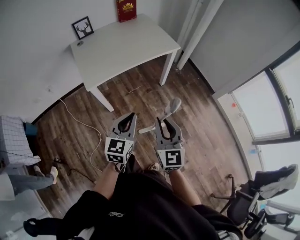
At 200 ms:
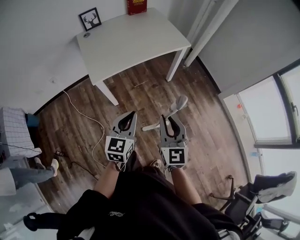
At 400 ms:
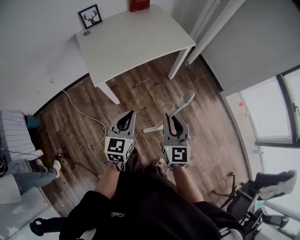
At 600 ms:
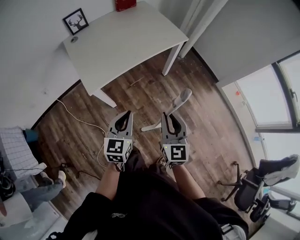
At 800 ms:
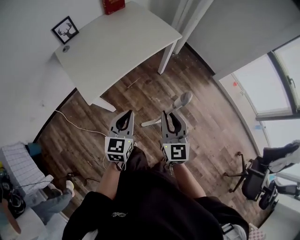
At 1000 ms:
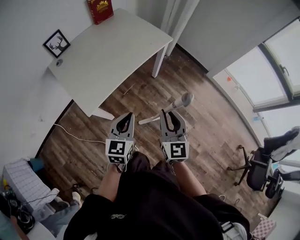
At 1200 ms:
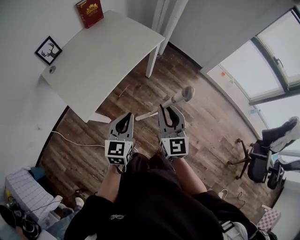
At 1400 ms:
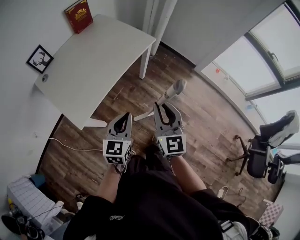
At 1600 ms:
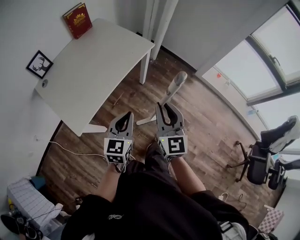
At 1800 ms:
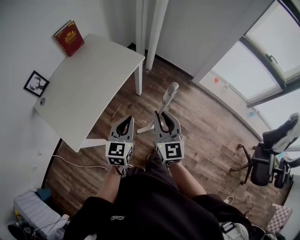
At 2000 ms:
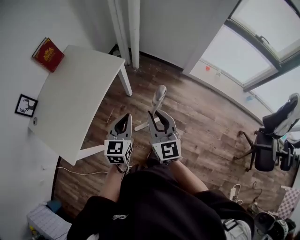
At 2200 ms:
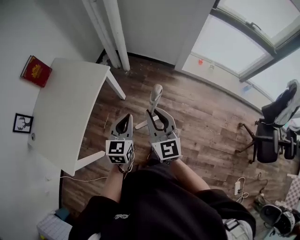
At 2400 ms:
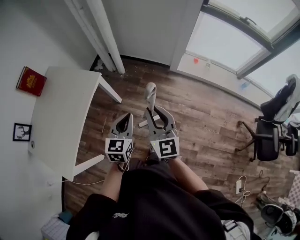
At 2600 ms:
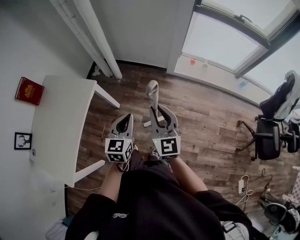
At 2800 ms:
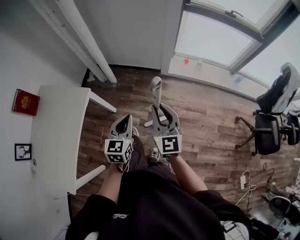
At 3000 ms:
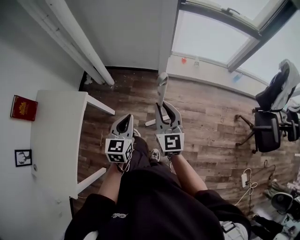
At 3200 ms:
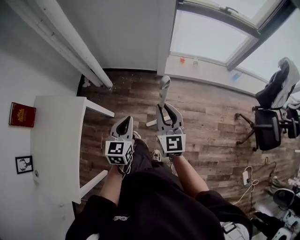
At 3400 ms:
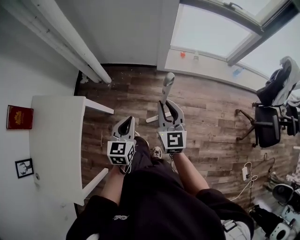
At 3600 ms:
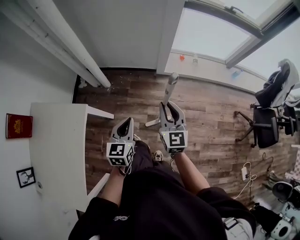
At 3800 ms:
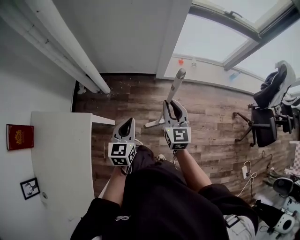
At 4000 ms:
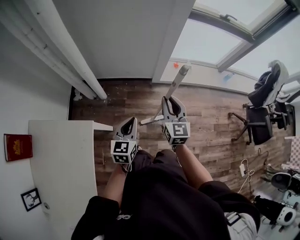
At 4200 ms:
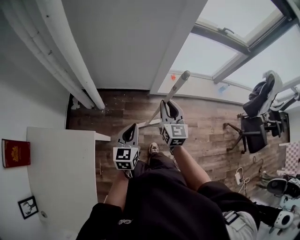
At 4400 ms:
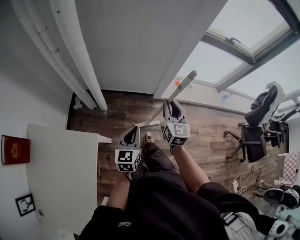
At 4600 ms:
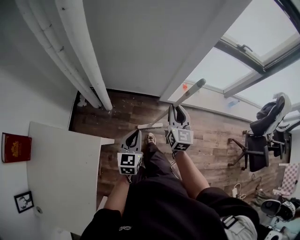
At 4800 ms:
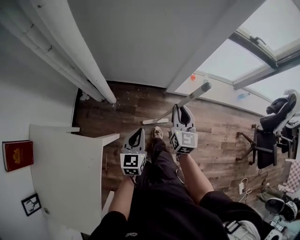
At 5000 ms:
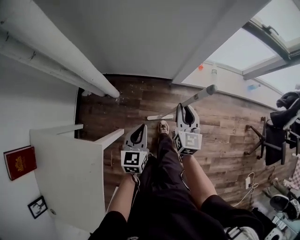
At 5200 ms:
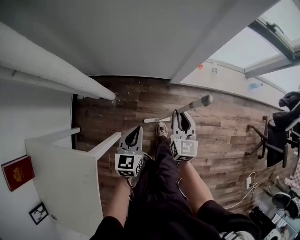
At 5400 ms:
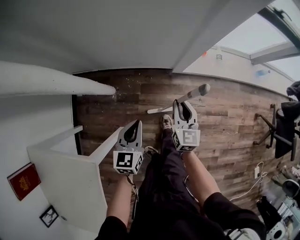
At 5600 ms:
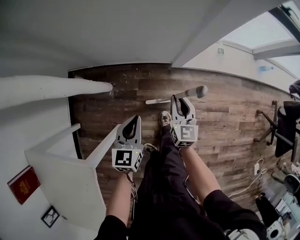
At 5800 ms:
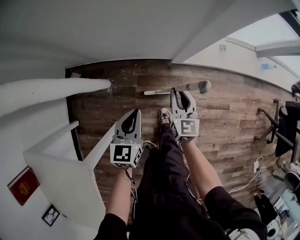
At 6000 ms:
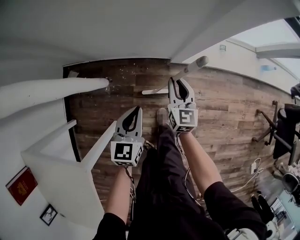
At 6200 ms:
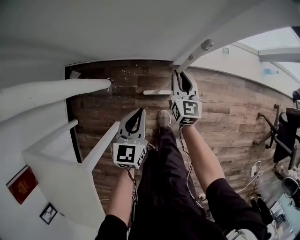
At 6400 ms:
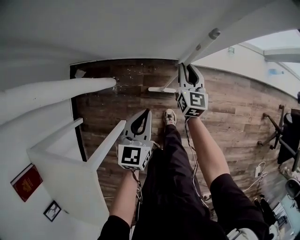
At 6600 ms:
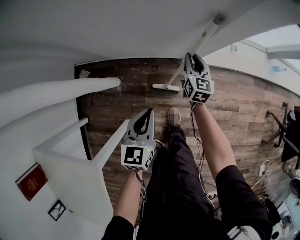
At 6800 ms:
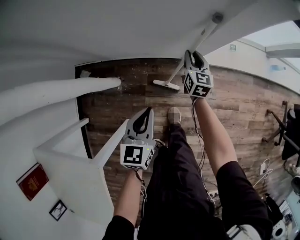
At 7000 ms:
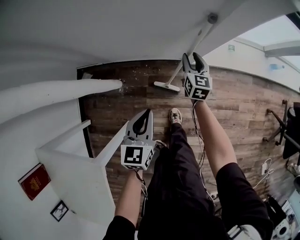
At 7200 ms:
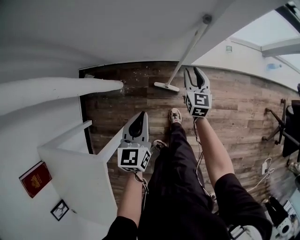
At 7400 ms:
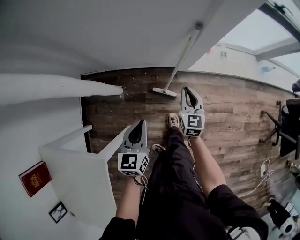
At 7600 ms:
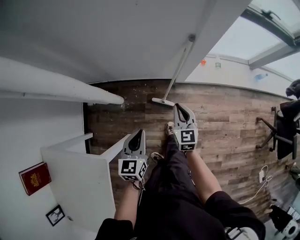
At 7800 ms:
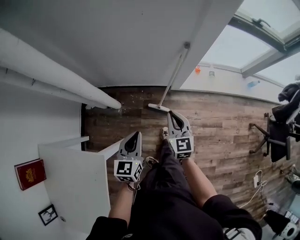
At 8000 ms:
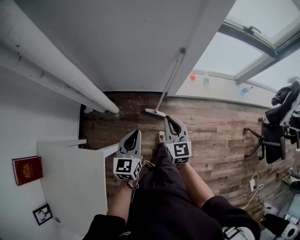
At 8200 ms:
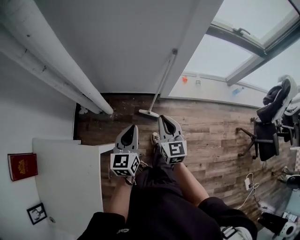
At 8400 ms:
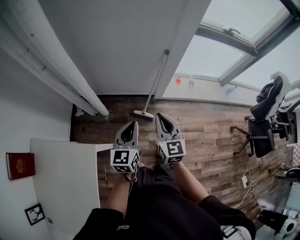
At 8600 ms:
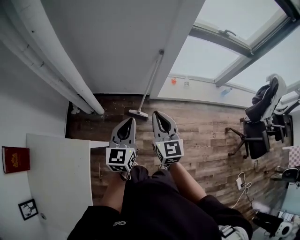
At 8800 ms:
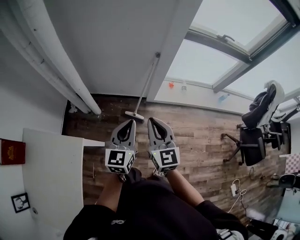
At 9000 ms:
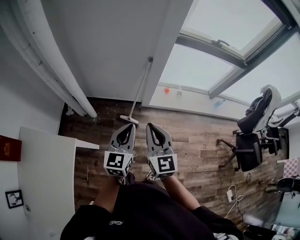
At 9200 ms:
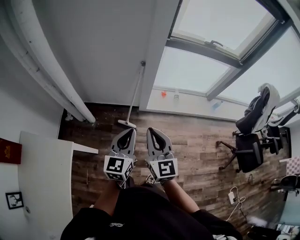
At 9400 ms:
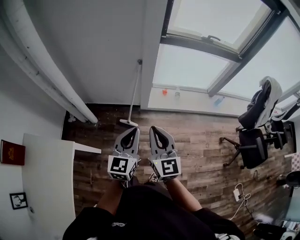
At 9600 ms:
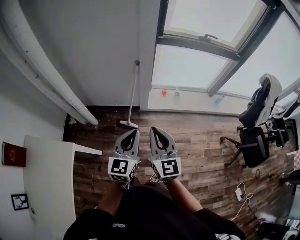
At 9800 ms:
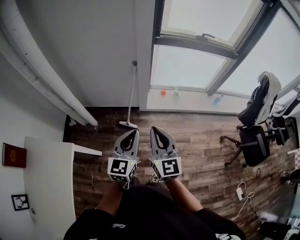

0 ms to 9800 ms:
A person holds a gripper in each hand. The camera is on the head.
0 ms to 1400 ms: The two grippers go some 15 cm forward and to the left. The right gripper swivels approximately 20 degrees.
1400 ms to 2800 ms: The two grippers travel together, to the right and forward, roughly 40 cm. The right gripper turns by roughly 20 degrees; the left gripper rotates approximately 20 degrees.
2800 ms to 4200 ms: The right gripper moves forward, some 25 cm, while the left gripper moves forward and to the left, roughly 20 cm.
4200 ms to 5600 ms: The left gripper is displaced forward and downward by roughly 30 cm. The right gripper moves downward and forward, about 35 cm.
5600 ms to 7000 ms: The right gripper goes roughly 20 cm forward.
7000 ms to 8400 ms: The right gripper shifts approximately 50 cm backward and upward, and closes its fingers. The left gripper moves upward and backward, about 30 cm.
8400 ms to 9800 ms: The right gripper goes roughly 25 cm to the right, backward and upward. The left gripper moves to the right, some 25 cm.

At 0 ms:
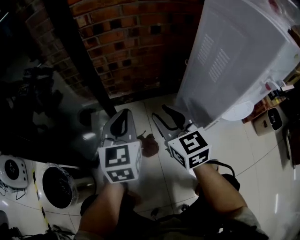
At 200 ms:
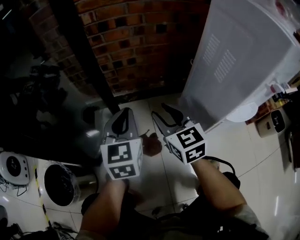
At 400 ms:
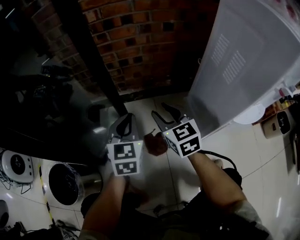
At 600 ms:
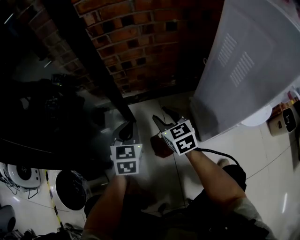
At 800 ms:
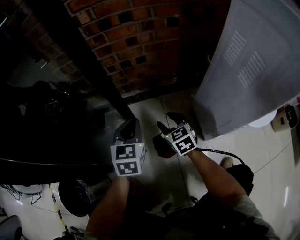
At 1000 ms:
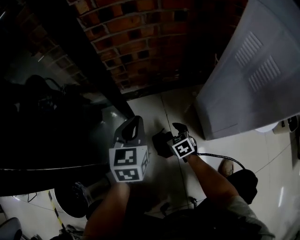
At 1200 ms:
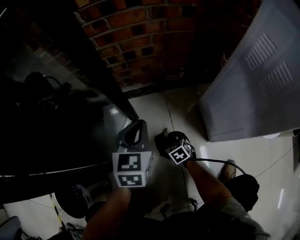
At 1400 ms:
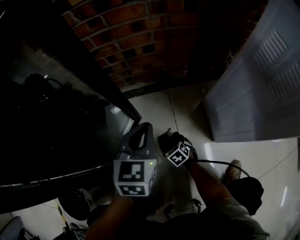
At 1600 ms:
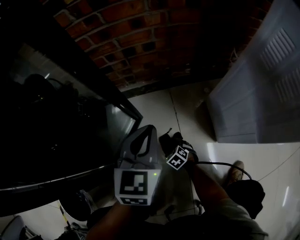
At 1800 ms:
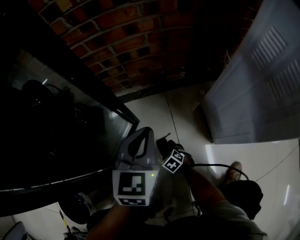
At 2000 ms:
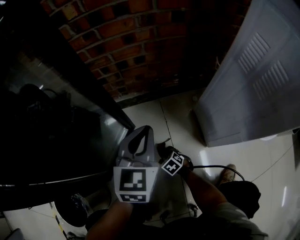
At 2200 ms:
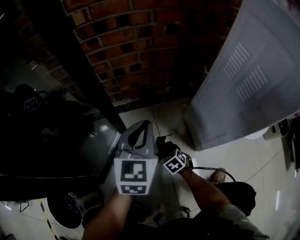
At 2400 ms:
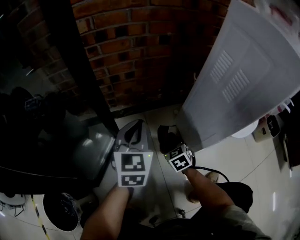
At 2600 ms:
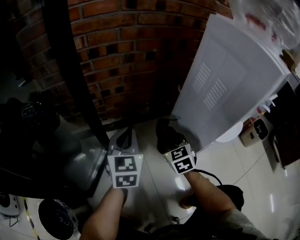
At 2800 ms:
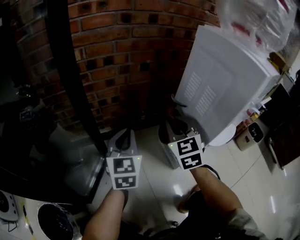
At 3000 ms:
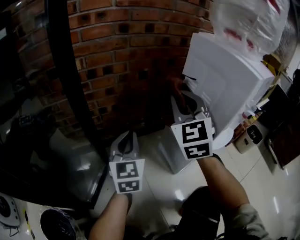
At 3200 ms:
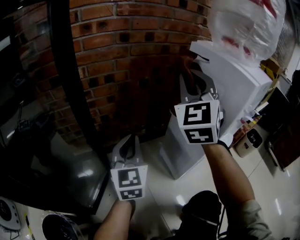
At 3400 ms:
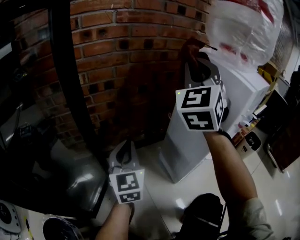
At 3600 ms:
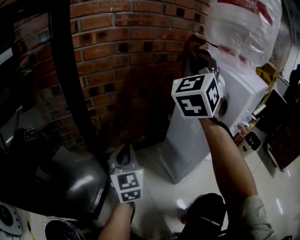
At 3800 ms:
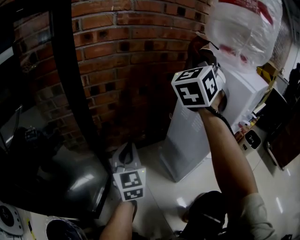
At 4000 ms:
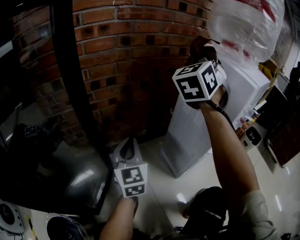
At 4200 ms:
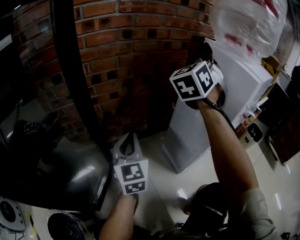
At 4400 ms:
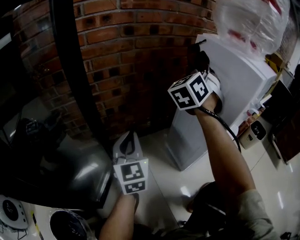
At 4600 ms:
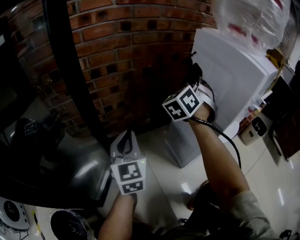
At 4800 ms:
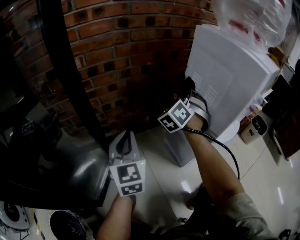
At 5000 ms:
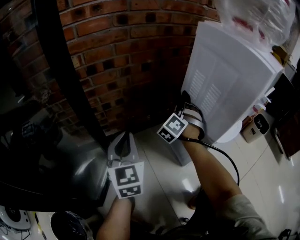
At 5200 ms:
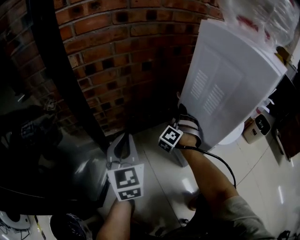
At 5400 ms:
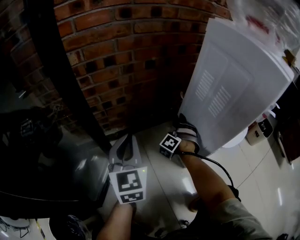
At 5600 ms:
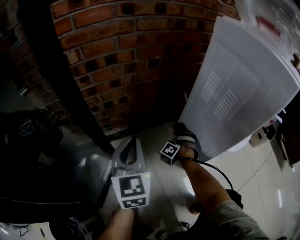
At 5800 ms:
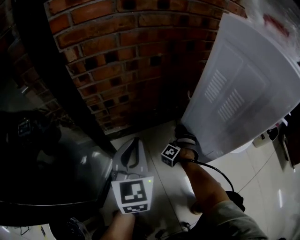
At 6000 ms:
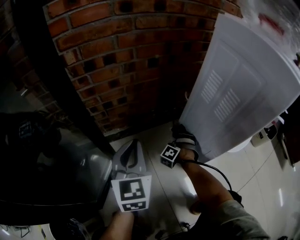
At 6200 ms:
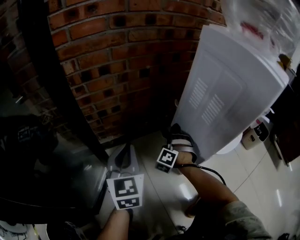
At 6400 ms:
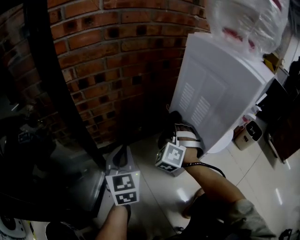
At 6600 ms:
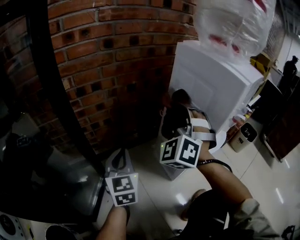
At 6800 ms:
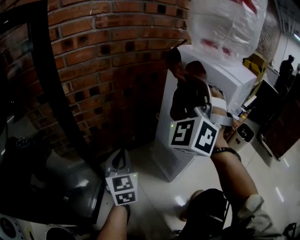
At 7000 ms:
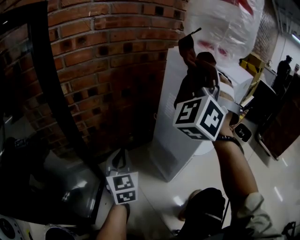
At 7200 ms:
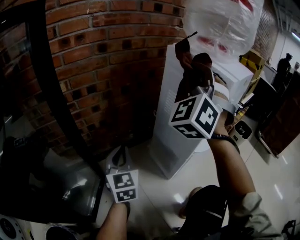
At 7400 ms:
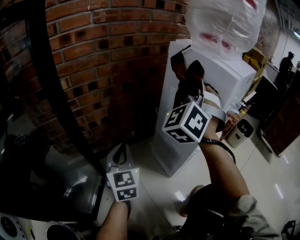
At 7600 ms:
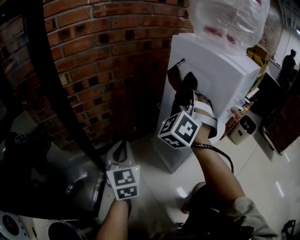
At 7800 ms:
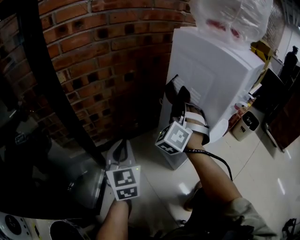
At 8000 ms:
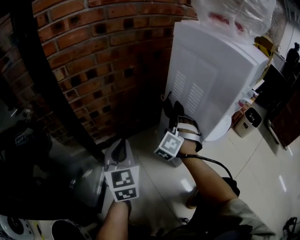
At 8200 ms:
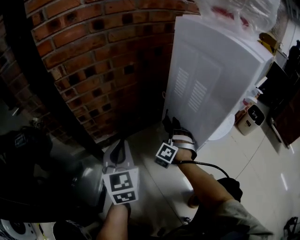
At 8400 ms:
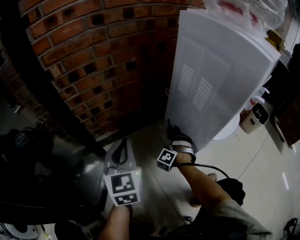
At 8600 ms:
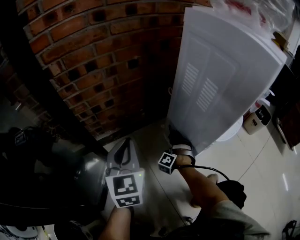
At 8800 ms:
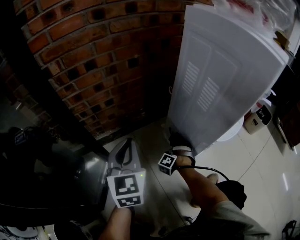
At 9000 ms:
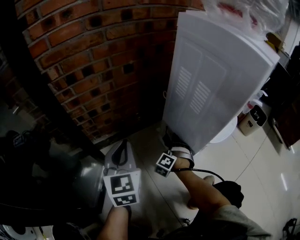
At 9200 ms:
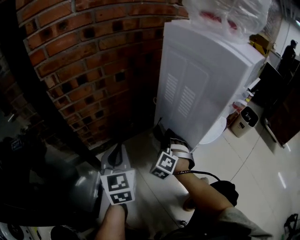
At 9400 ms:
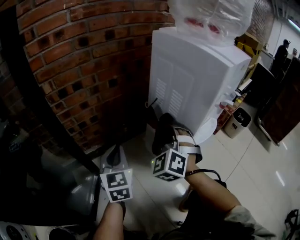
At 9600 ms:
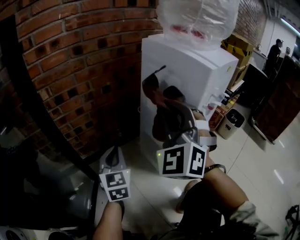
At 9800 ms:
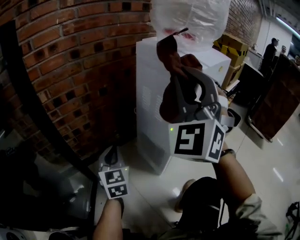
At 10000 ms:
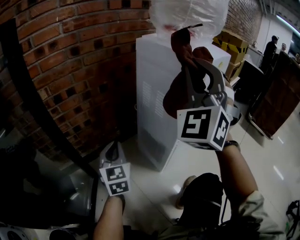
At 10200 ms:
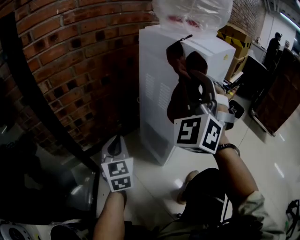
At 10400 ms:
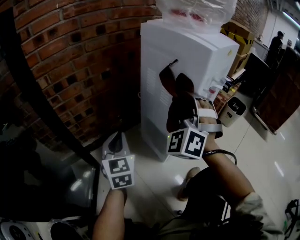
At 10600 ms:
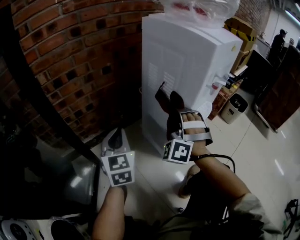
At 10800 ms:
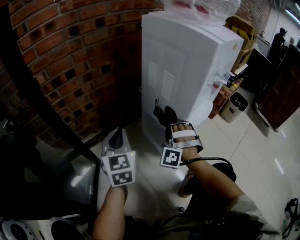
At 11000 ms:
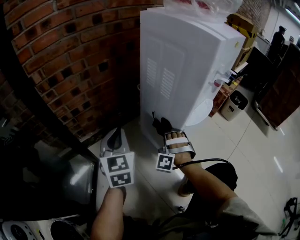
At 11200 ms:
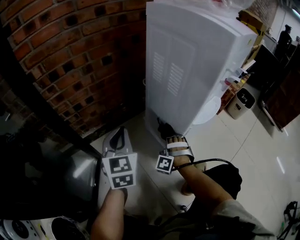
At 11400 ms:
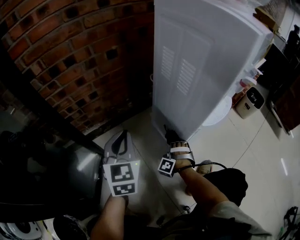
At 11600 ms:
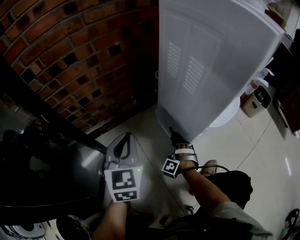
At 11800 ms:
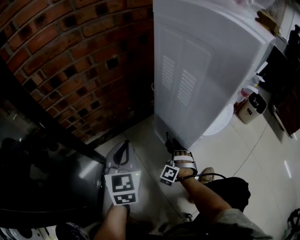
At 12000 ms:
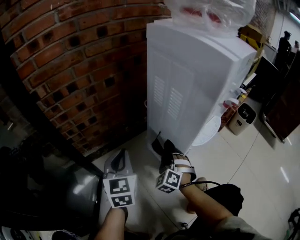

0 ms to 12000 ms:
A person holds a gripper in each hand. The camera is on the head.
0 ms to 1600 ms: The right gripper travels downward by approximately 50 cm, and angles its fingers downward, by some 50 degrees. The left gripper travels downward and forward by approximately 10 cm.
1600 ms to 3000 ms: The right gripper travels upward by some 70 cm, angles its fingers upward, by approximately 60 degrees, and closes, while the left gripper heads upward, covering about 15 cm.
3000 ms to 4400 ms: The right gripper is displaced forward by about 10 cm, goes upward and returns, roughly 15 cm each way, and swivels about 40 degrees.
4400 ms to 6000 ms: The right gripper heads downward, covering some 50 cm, and tilts its fingers about 40 degrees downward.
6000 ms to 7600 ms: The right gripper shifts approximately 40 cm upward, and points its fingers roughly 40 degrees further upward.
7600 ms to 9000 ms: The right gripper moves downward, some 40 cm, and tips its fingers downward by about 40 degrees.
9000 ms to 10400 ms: The left gripper travels to the right by approximately 5 cm. The right gripper travels upward by about 40 cm, and tips its fingers upward by about 40 degrees.
10400 ms to 12000 ms: The right gripper is displaced downward by roughly 30 cm, and angles its fingers downward, by roughly 30 degrees.

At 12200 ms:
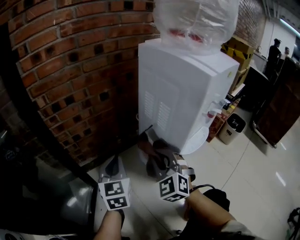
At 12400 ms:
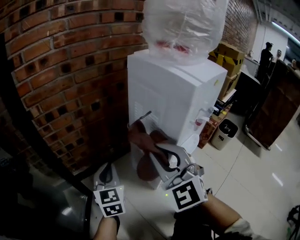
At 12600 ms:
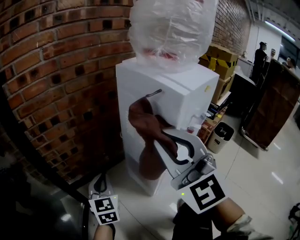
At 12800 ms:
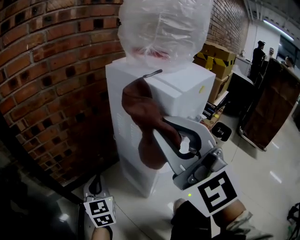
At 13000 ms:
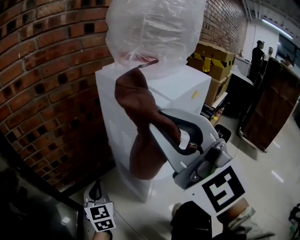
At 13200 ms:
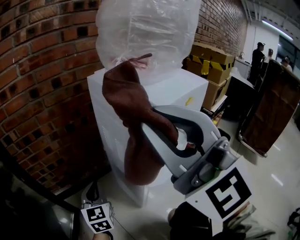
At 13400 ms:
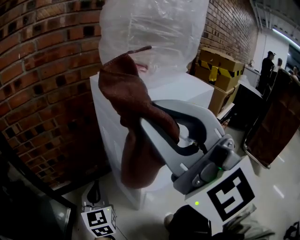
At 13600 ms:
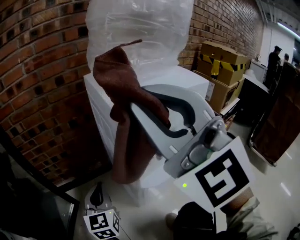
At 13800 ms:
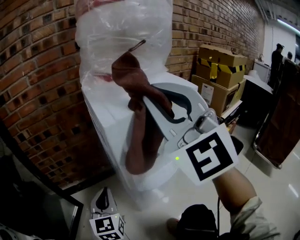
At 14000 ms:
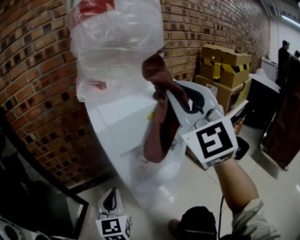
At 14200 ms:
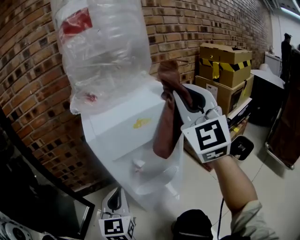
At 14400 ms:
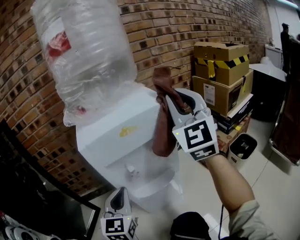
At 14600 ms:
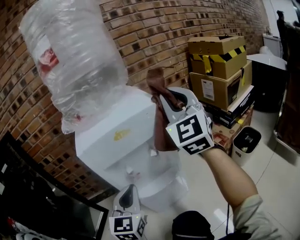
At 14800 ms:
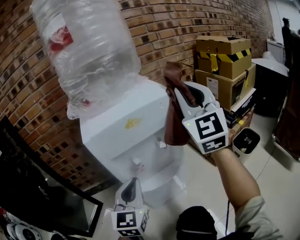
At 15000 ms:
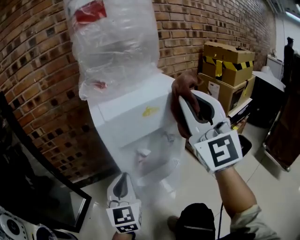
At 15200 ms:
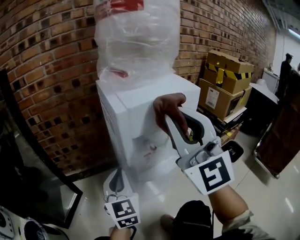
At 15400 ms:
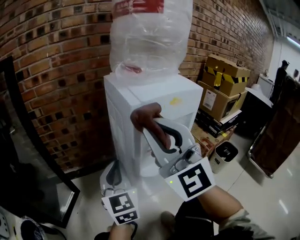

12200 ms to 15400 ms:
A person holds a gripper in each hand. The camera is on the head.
12200 ms to 13800 ms: The right gripper shifts approximately 40 cm upward and to the right, and tips its fingers upward by approximately 30 degrees. Meanwhile the left gripper heads to the right and backward, covering roughly 15 cm.
13800 ms to 15400 ms: The right gripper goes roughly 10 cm backward and downward, and travels to the right and back again, approximately 20 cm each way, while the left gripper shifts some 10 cm upward, and goes to the right and returns, roughly 15 cm each way.